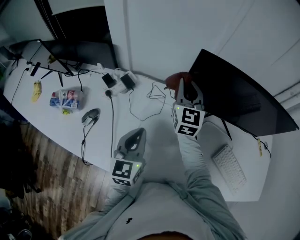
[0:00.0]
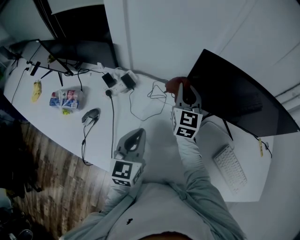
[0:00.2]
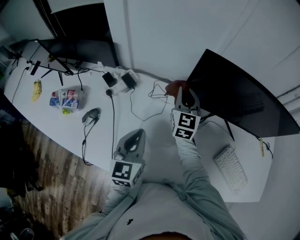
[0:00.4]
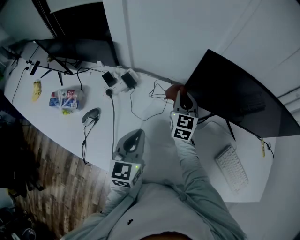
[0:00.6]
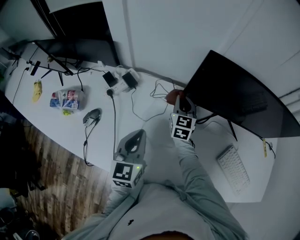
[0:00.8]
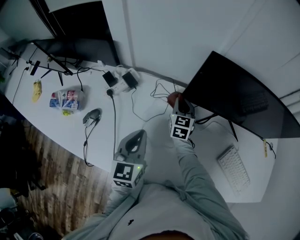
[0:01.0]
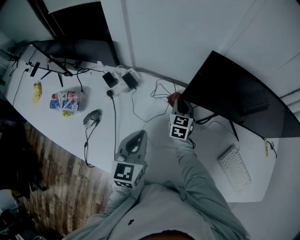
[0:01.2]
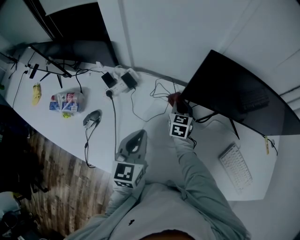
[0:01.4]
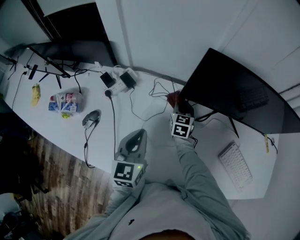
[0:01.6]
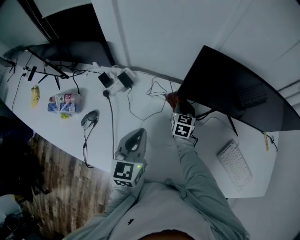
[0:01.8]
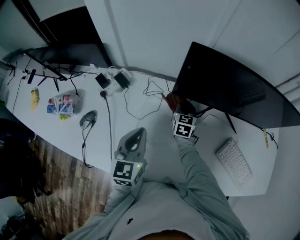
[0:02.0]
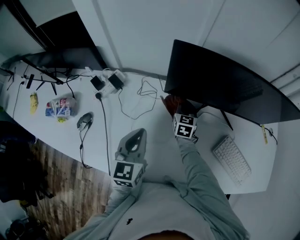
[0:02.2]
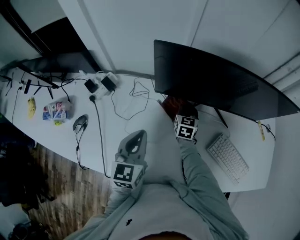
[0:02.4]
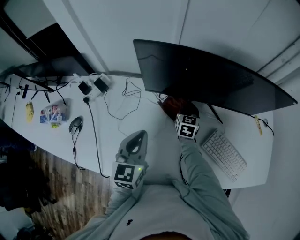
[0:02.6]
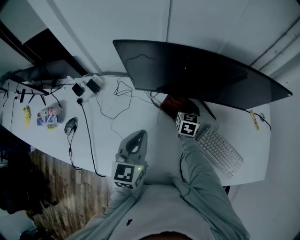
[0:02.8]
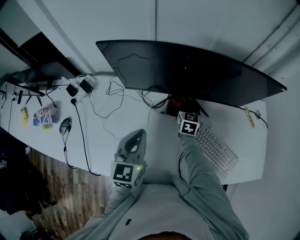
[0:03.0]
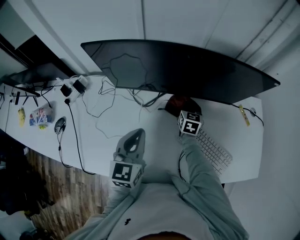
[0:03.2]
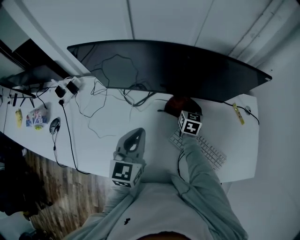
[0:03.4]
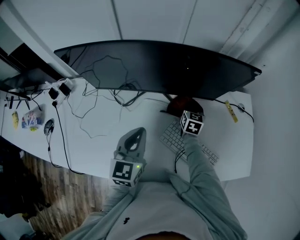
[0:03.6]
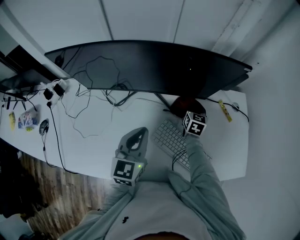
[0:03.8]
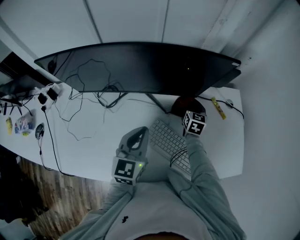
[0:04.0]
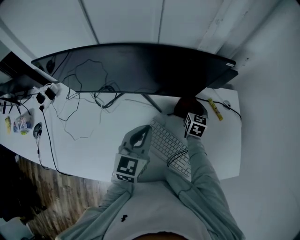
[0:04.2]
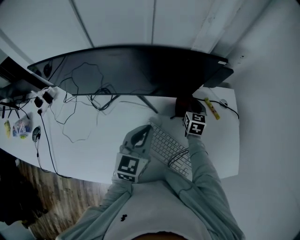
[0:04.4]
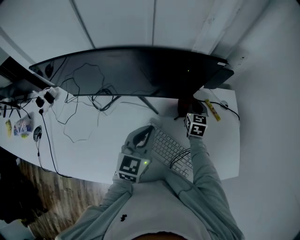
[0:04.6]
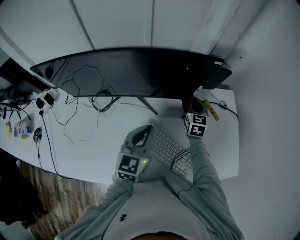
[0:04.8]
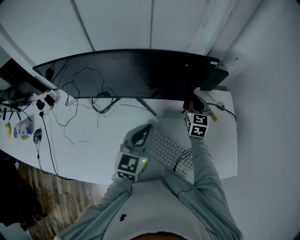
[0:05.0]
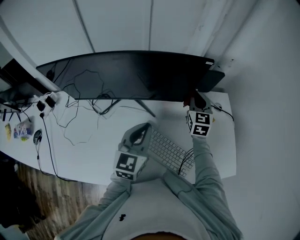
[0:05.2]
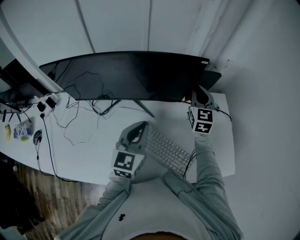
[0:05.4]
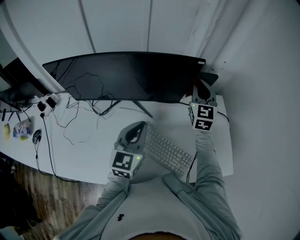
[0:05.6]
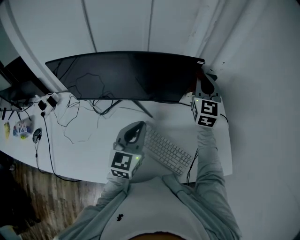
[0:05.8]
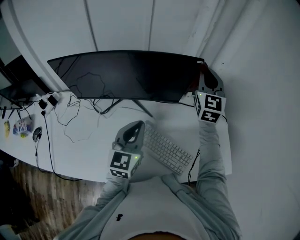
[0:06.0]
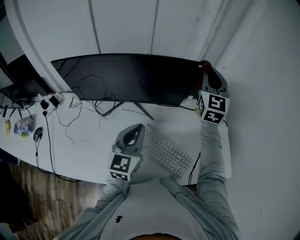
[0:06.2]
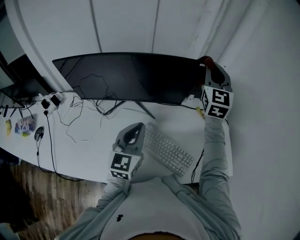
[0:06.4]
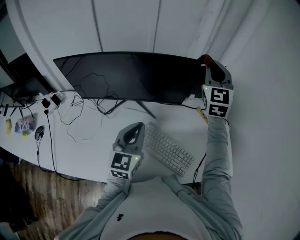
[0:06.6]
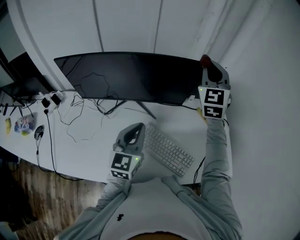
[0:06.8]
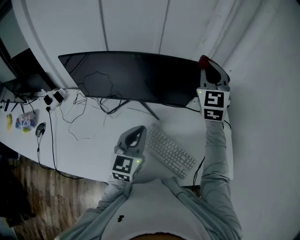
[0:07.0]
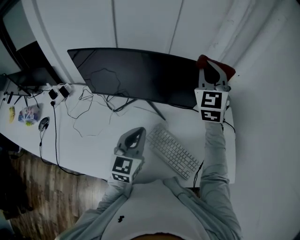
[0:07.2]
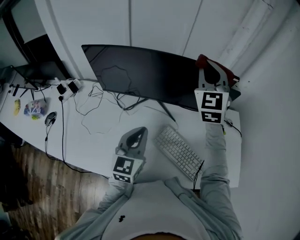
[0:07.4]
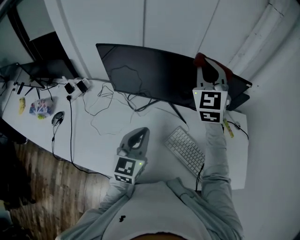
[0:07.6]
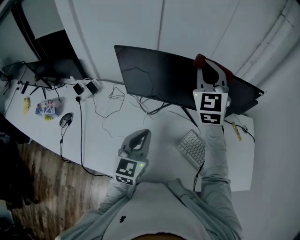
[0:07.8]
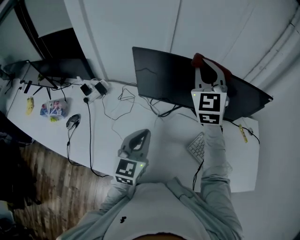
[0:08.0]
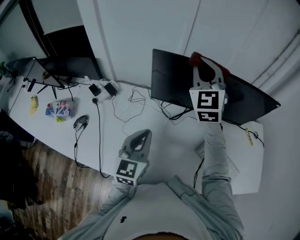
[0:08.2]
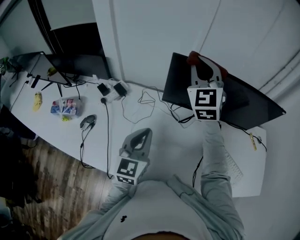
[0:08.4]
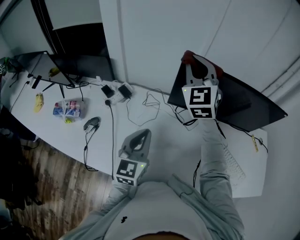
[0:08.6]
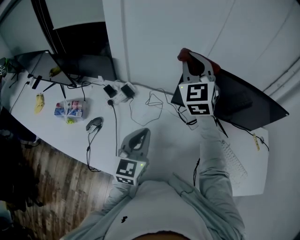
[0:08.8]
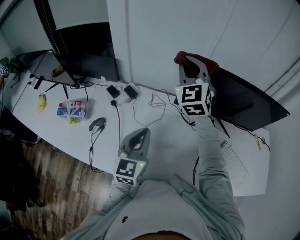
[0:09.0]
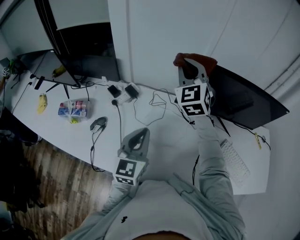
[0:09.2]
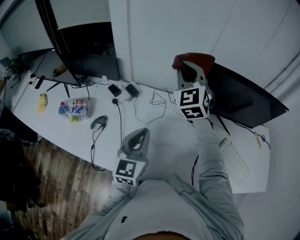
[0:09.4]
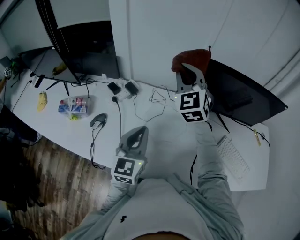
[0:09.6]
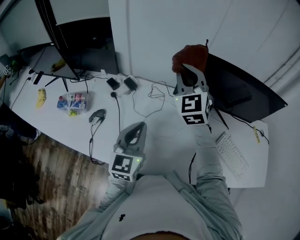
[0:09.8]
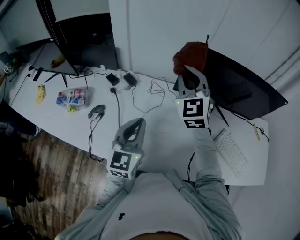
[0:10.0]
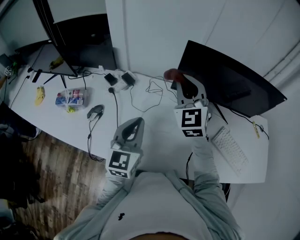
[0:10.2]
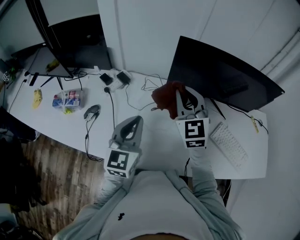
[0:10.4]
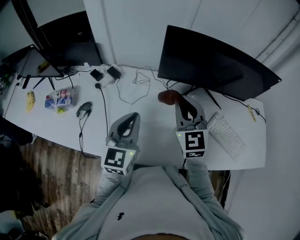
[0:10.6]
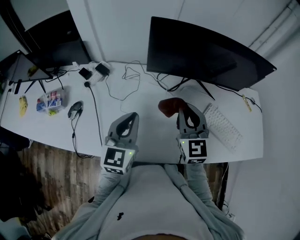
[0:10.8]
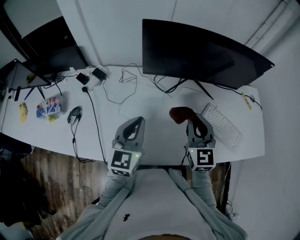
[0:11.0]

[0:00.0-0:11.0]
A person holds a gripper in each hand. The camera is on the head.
0:00.0 to 0:01.6: The right gripper heads downward, covering about 20 cm, and rotates about 30 degrees.
0:01.6 to 0:03.2: Both grippers move to the right, about 30 cm.
0:03.2 to 0:04.8: Both grippers travel together to the right, roughly 25 cm.
0:04.8 to 0:06.2: The right gripper heads upward, covering some 30 cm, and turns by some 30 degrees, while the left gripper heads upward and backward, covering approximately 10 cm.
0:06.2 to 0:07.8: The left gripper shifts some 20 cm to the left. The right gripper shifts about 35 cm to the left, and turns by some 20 degrees.
0:07.8 to 0:09.4: The two grippers go approximately 30 cm to the left.
0:09.4 to 0:11.0: The right gripper shifts about 35 cm backward, to the right and downward, and turns by some 30 degrees, while the left gripper is displaced to the right by some 10 cm.

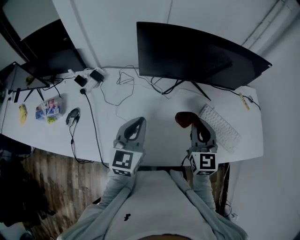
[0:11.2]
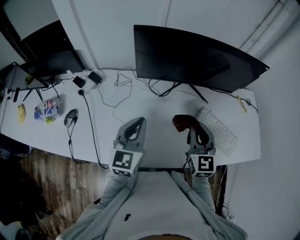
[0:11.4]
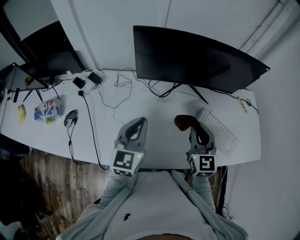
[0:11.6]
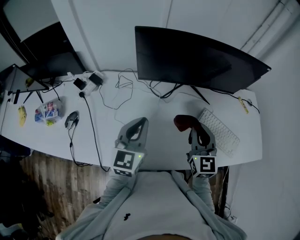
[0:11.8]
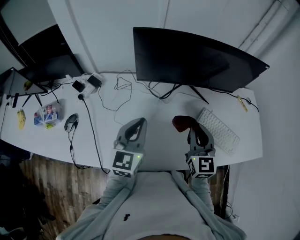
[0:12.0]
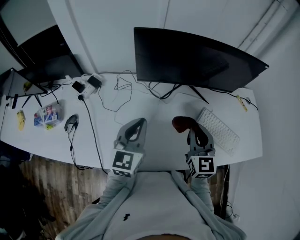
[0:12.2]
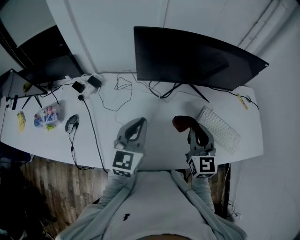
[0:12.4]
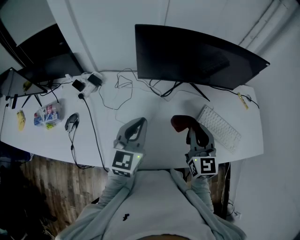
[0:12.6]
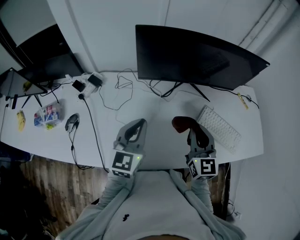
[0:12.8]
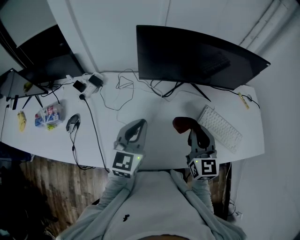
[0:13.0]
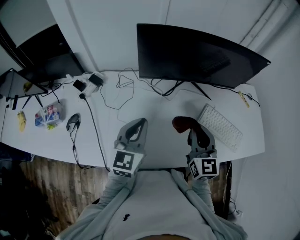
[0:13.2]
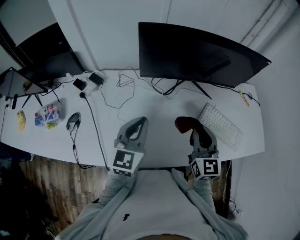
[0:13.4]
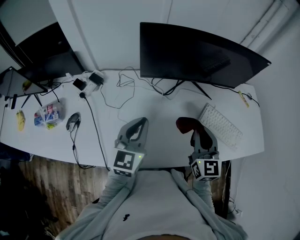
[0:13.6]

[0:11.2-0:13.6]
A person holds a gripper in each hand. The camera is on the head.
0:11.2 to 0:13.6: There are only small adjustments of the grippers.

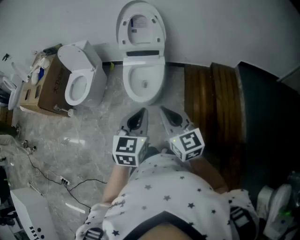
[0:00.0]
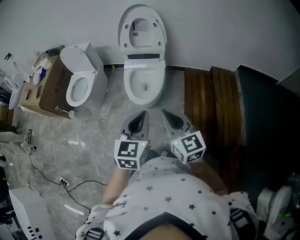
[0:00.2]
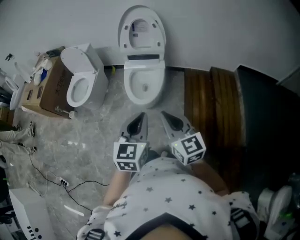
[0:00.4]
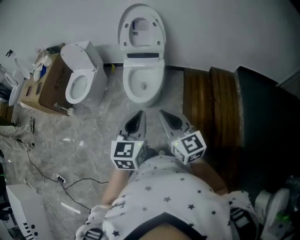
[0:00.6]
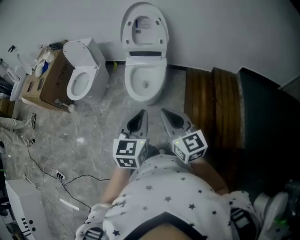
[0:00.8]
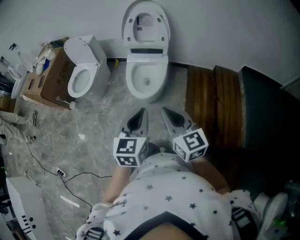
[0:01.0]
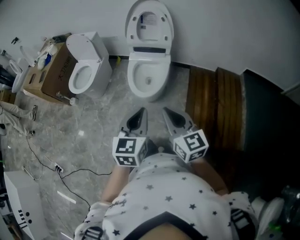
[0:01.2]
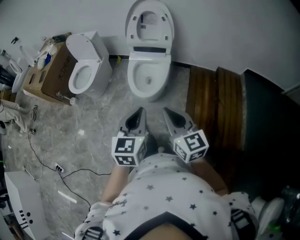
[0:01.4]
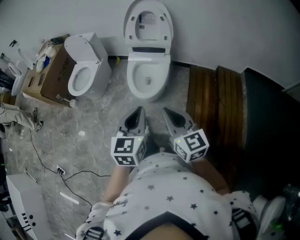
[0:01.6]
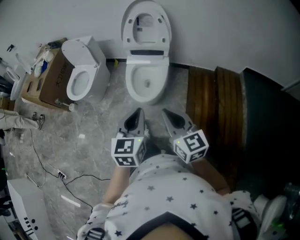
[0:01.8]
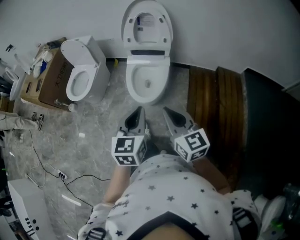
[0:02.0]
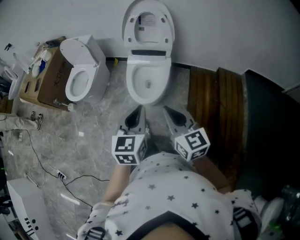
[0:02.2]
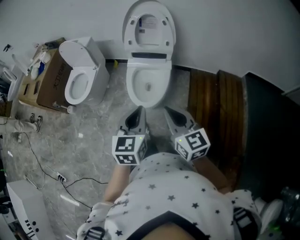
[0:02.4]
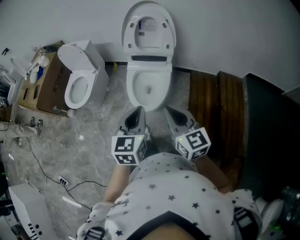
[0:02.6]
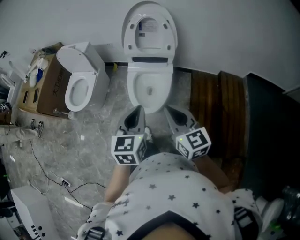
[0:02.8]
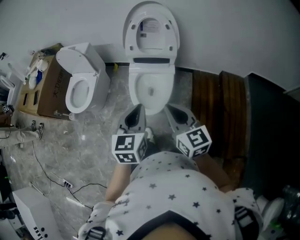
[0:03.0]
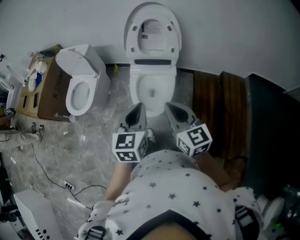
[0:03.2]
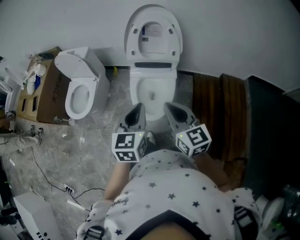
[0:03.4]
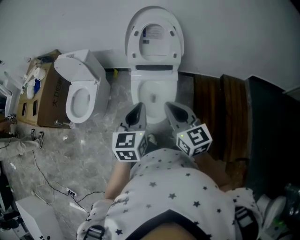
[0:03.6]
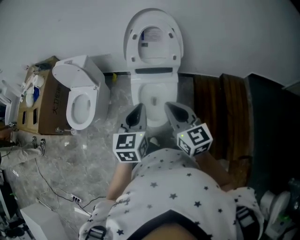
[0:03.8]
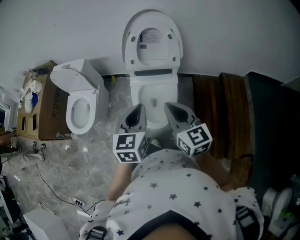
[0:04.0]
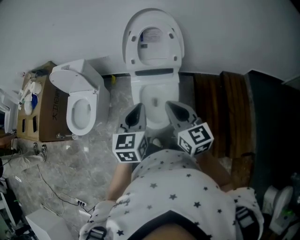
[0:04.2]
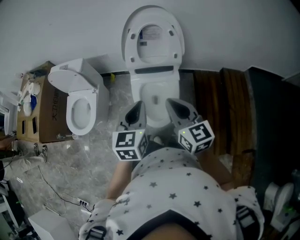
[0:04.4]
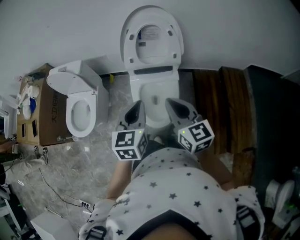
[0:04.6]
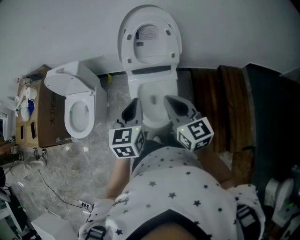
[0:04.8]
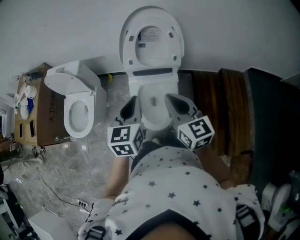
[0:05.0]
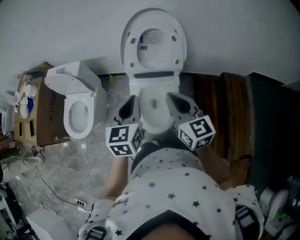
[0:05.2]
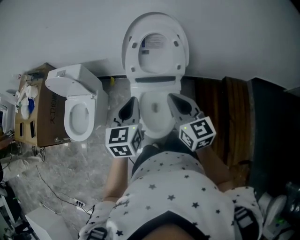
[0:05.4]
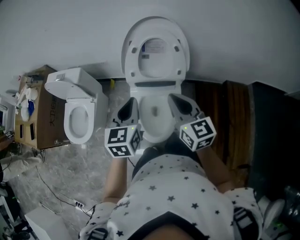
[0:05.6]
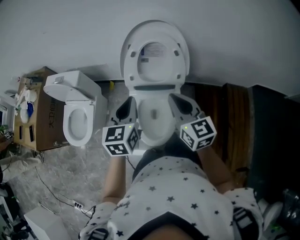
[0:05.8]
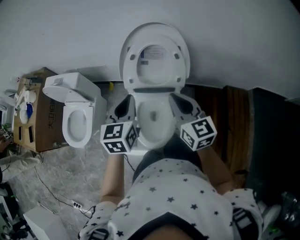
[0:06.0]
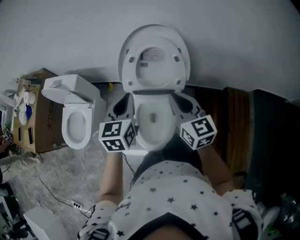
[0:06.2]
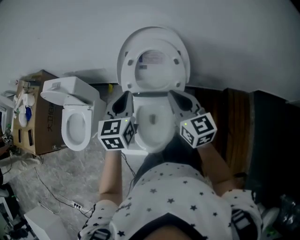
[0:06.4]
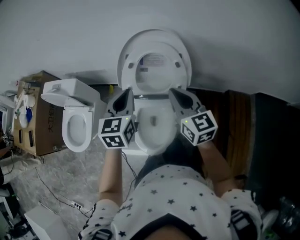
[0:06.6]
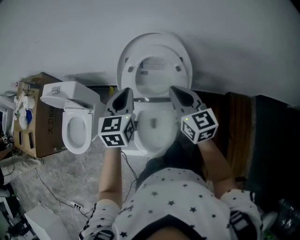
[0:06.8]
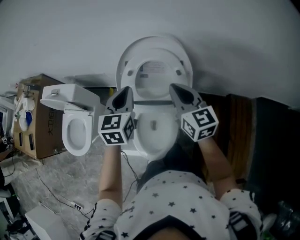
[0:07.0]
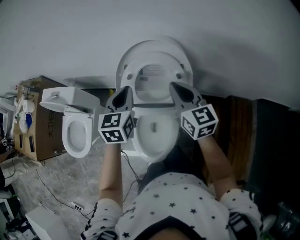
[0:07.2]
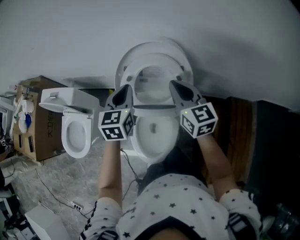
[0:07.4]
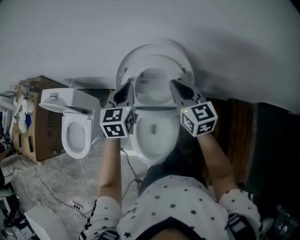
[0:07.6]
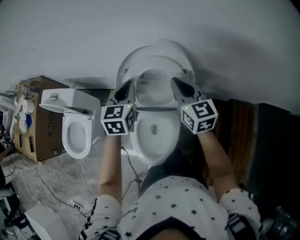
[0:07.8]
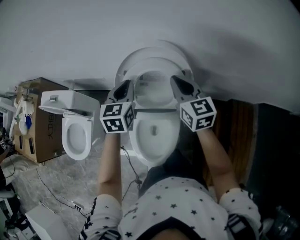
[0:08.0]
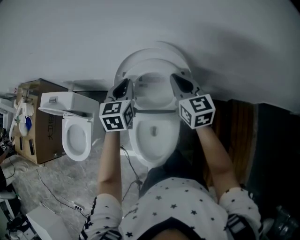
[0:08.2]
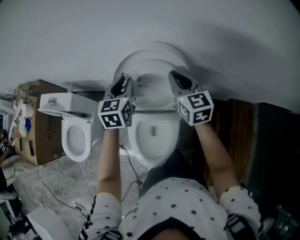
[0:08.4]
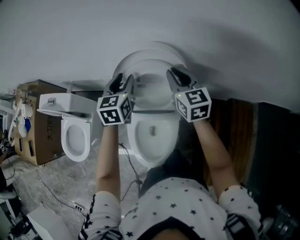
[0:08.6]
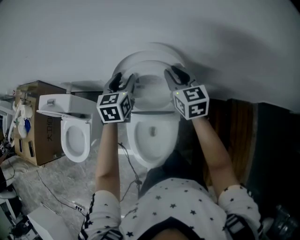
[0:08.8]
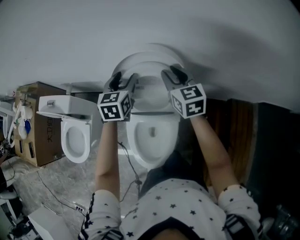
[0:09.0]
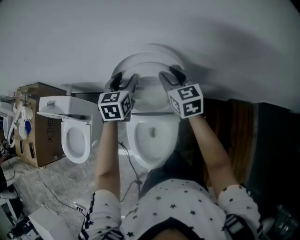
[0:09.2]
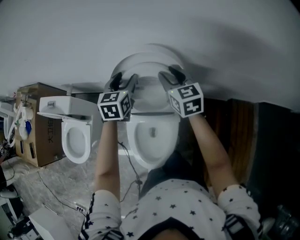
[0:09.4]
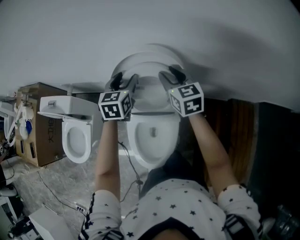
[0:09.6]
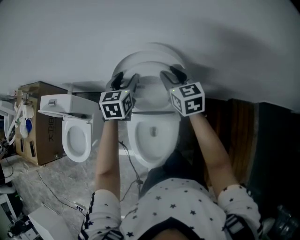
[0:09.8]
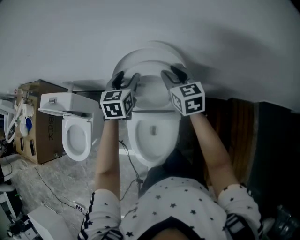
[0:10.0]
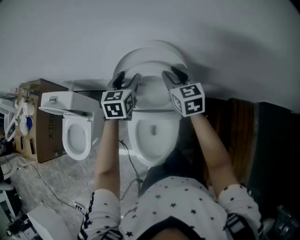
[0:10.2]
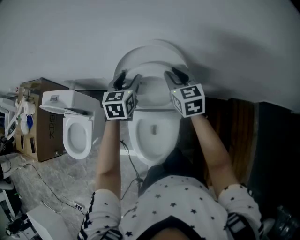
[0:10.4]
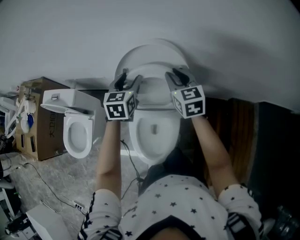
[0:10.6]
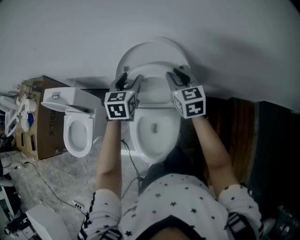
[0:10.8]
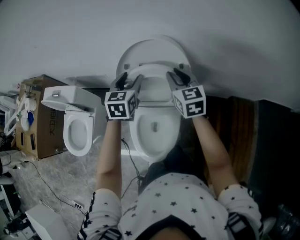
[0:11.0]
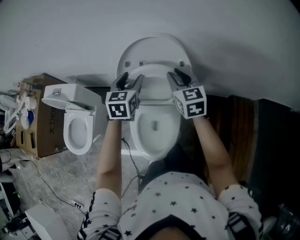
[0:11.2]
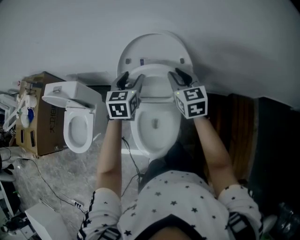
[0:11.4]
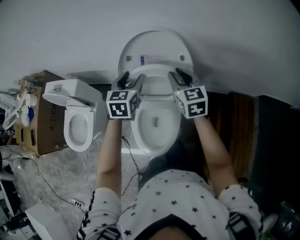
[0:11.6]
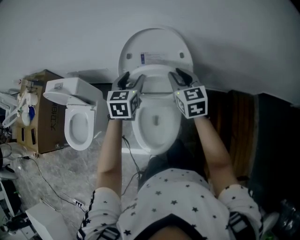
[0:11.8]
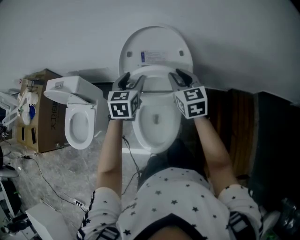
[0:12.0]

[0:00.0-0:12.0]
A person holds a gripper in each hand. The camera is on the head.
0:00.0 to 0:01.6: The grippers stay close to where they were, moving slightly.
0:01.6 to 0:03.0: The grippers both shift forward by about 20 cm.
0:03.0 to 0:04.4: The right gripper shifts some 15 cm forward and to the left, while the left gripper moves forward, roughly 15 cm.
0:04.4 to 0:06.0: The two grippers go some 20 cm forward.
0:06.0 to 0:07.6: Both grippers travel together forward, approximately 20 cm.
0:07.6 to 0:09.0: The two grippers go about 10 cm forward. The left gripper opens up, while the right gripper opens up.
0:09.0 to 0:10.4: The grippers stay close to where they were, moving slightly.
0:10.4 to 0:12.0: The two grippers go about 10 cm backward.
